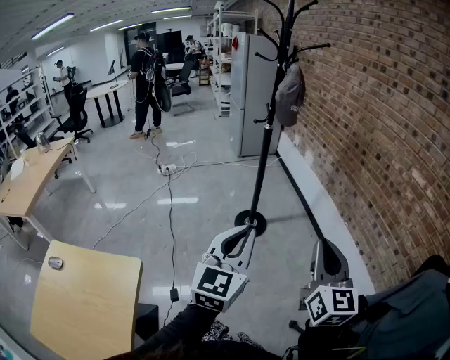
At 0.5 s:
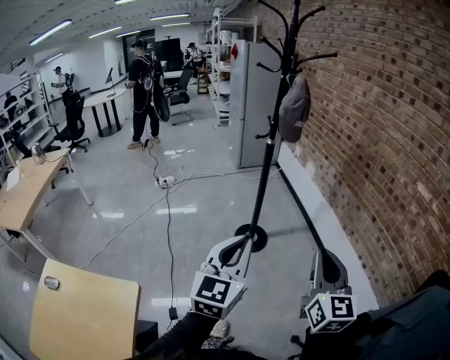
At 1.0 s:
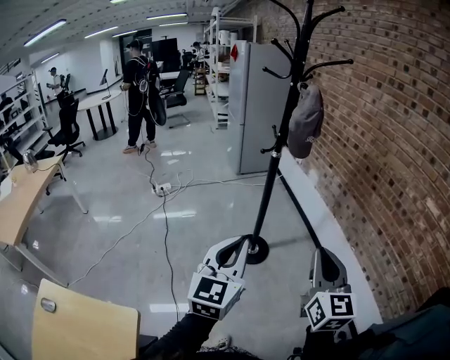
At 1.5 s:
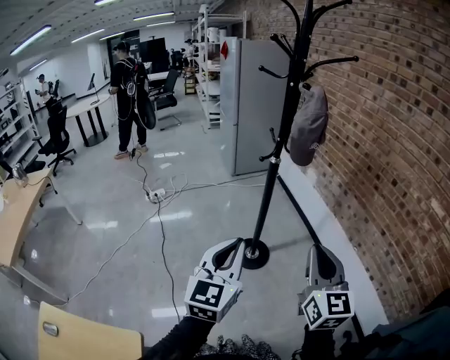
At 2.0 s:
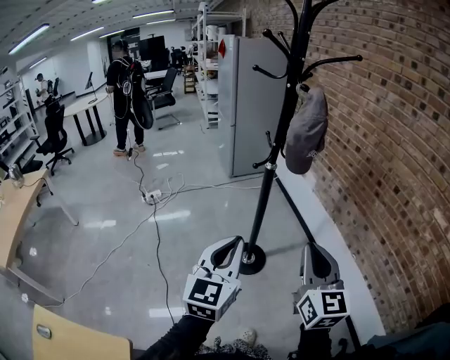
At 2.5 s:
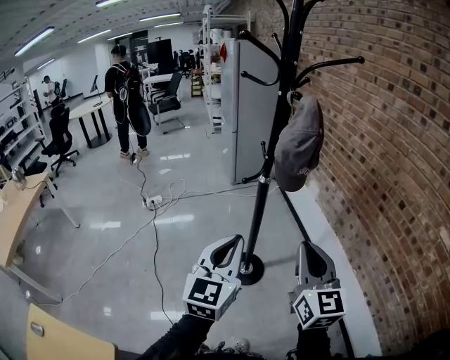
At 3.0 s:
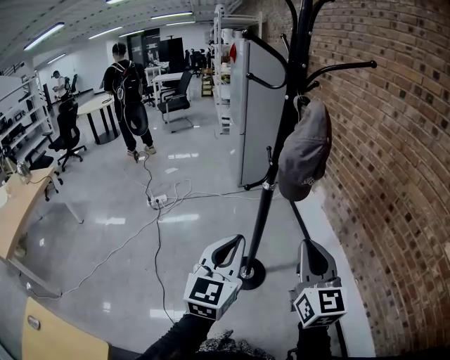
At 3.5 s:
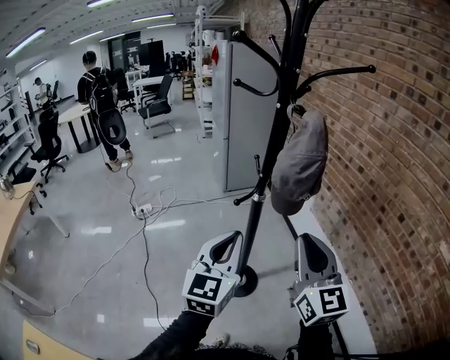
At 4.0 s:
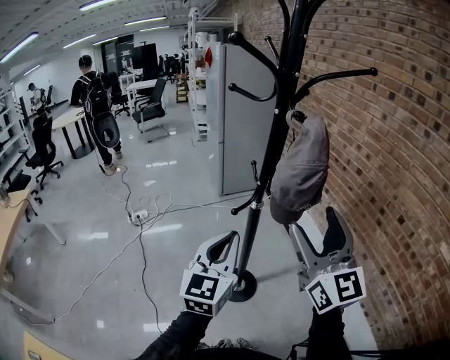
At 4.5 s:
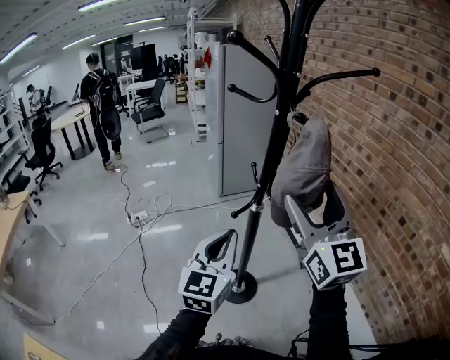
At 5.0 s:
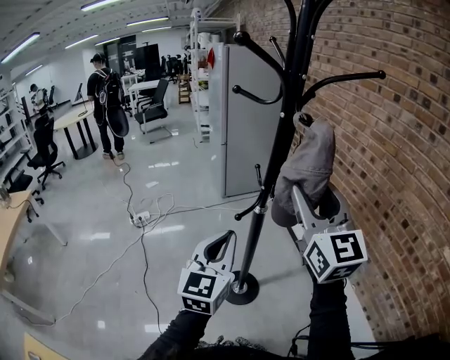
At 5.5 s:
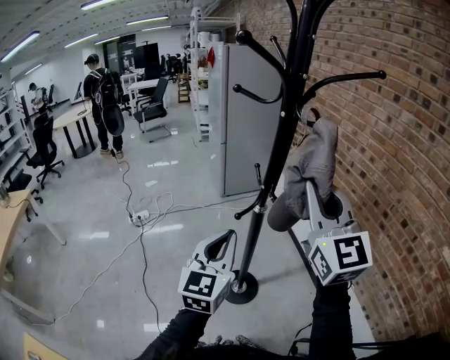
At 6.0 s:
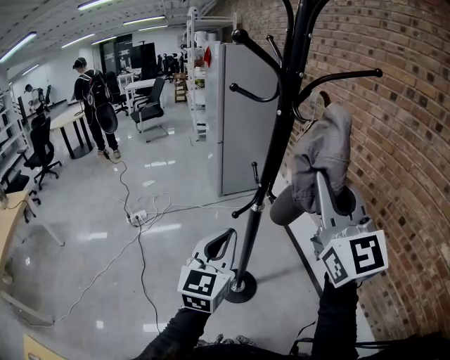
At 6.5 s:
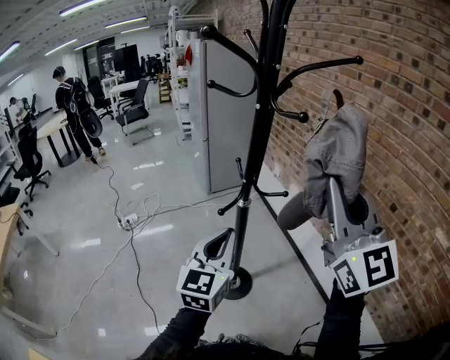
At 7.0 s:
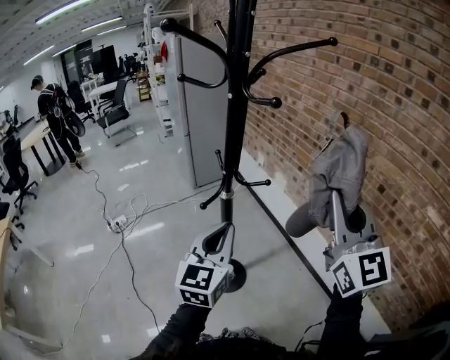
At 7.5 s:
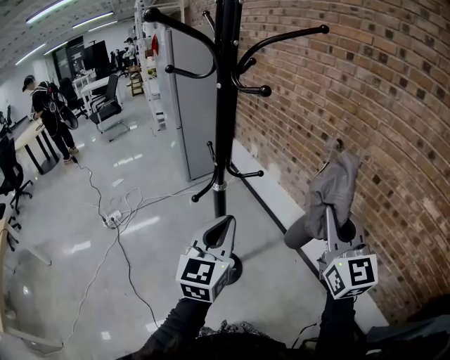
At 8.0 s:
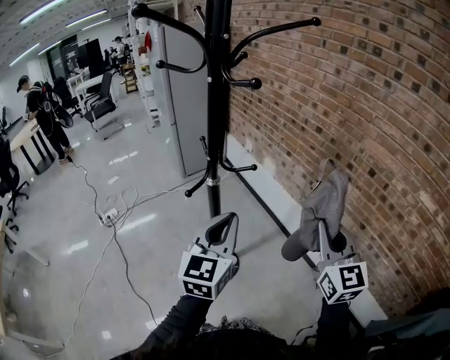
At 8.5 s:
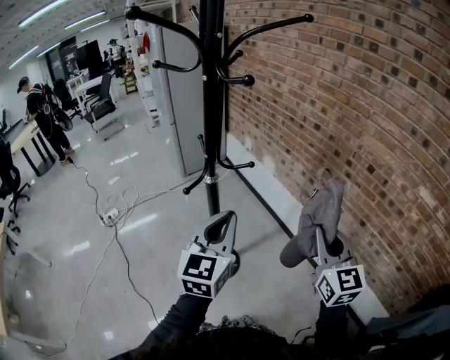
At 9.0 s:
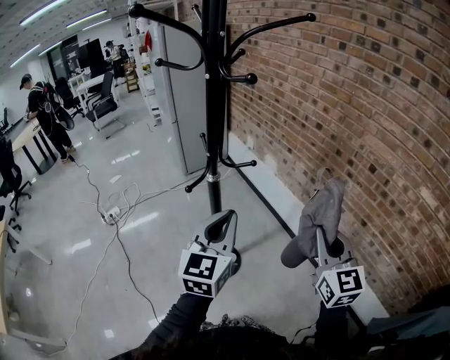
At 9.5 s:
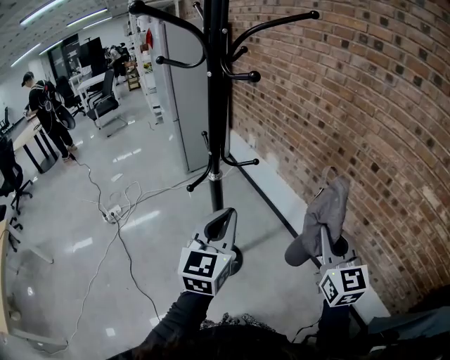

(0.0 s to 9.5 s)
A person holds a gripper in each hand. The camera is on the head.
0.0 s - 2.0 s: The two grippers go some 30 cm forward.
2.0 s - 4.0 s: The left gripper moves forward, some 20 cm; the right gripper travels forward and upward by about 25 cm, and opens its fingers.
4.0 s - 5.5 s: The right gripper goes some 10 cm forward and upward, and closes its fingers.
5.5 s - 7.5 s: The left gripper shifts some 10 cm to the right. Meanwhile the right gripper goes some 20 cm to the right, downward and backward.
7.5 s - 9.5 s: The right gripper moves downward, about 10 cm.

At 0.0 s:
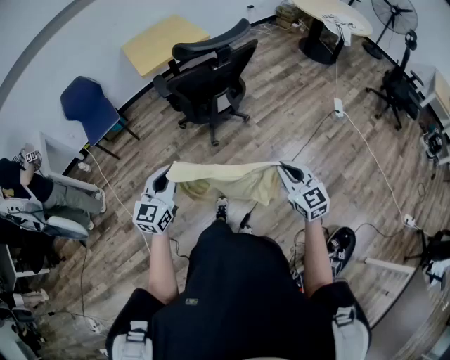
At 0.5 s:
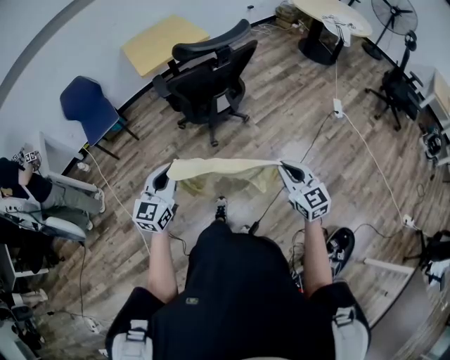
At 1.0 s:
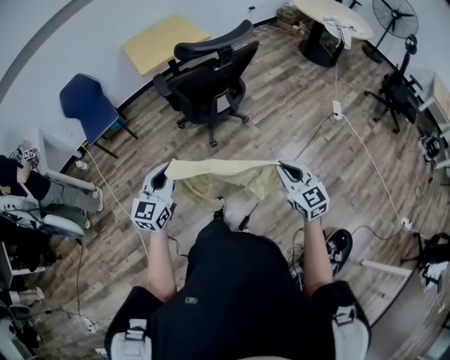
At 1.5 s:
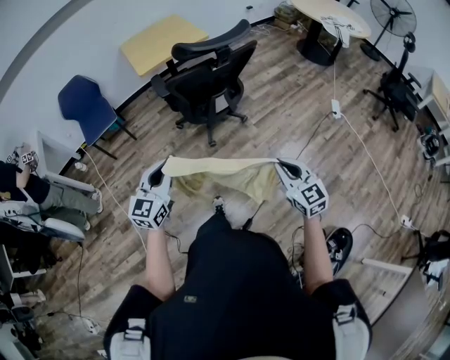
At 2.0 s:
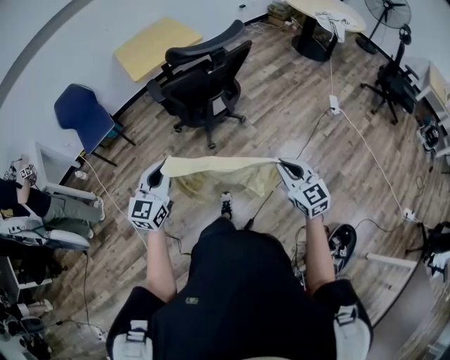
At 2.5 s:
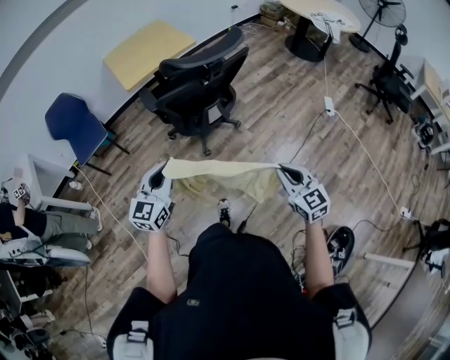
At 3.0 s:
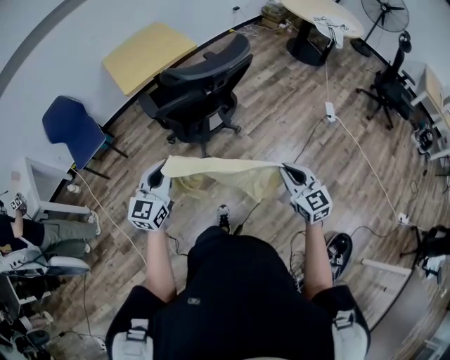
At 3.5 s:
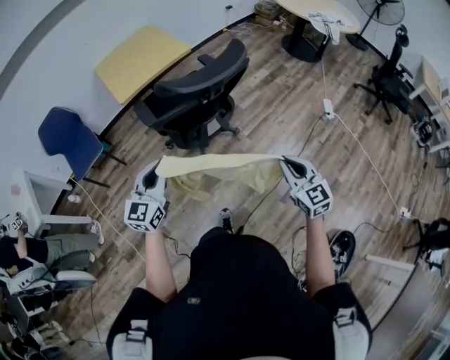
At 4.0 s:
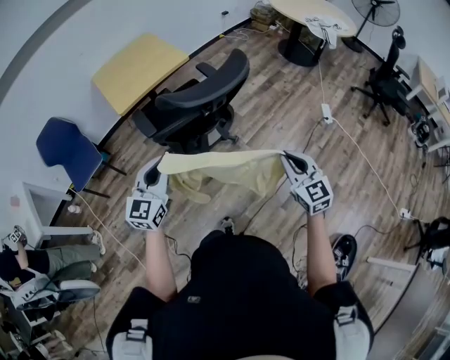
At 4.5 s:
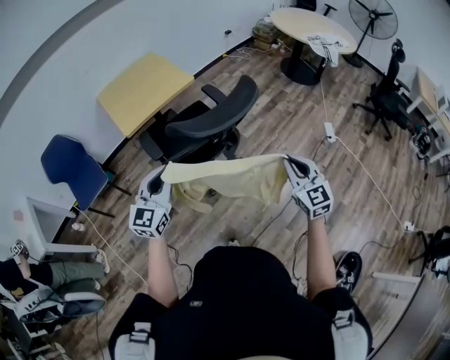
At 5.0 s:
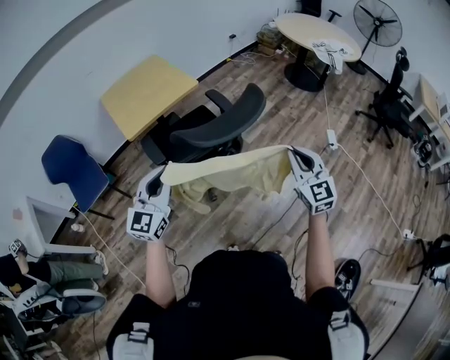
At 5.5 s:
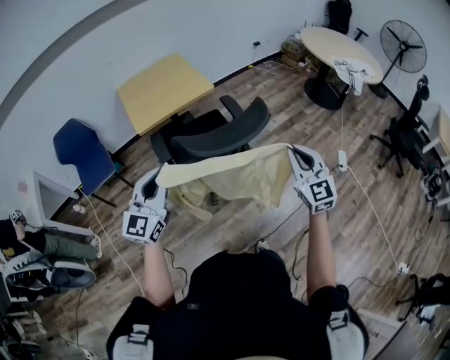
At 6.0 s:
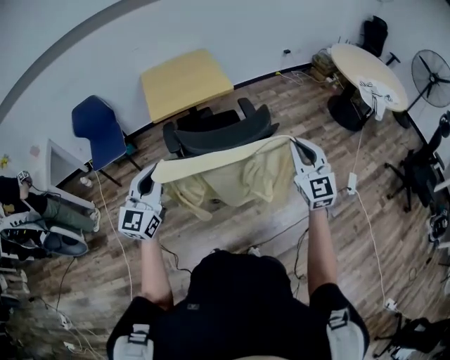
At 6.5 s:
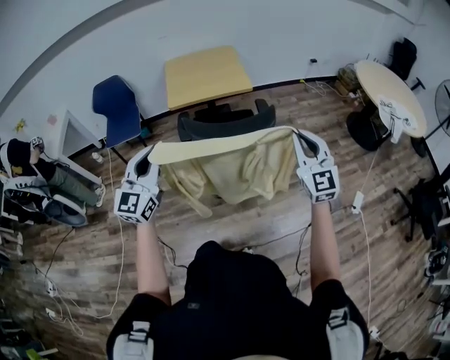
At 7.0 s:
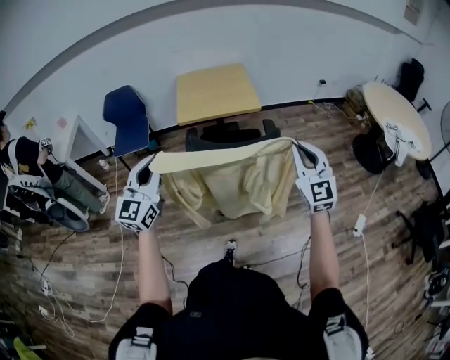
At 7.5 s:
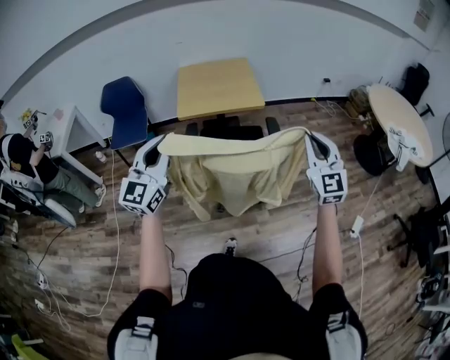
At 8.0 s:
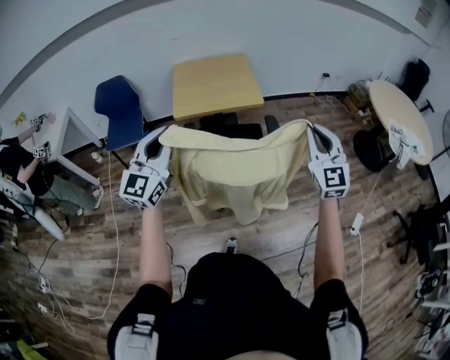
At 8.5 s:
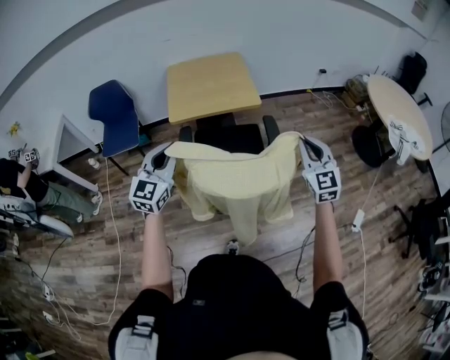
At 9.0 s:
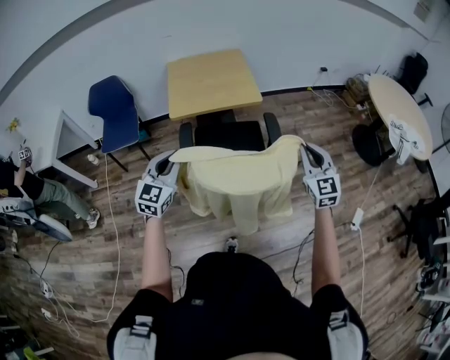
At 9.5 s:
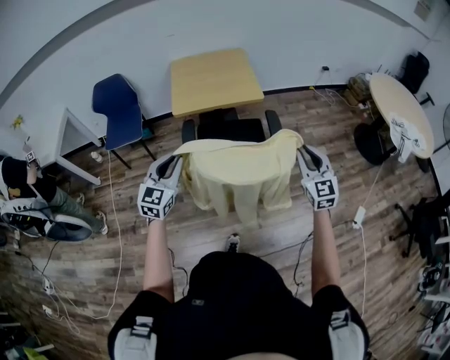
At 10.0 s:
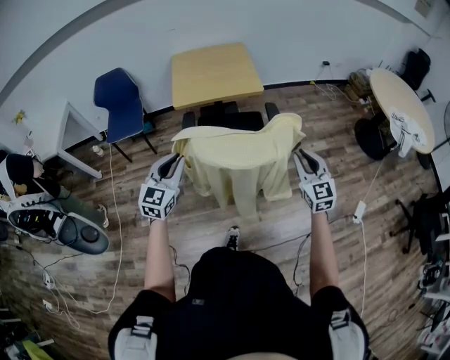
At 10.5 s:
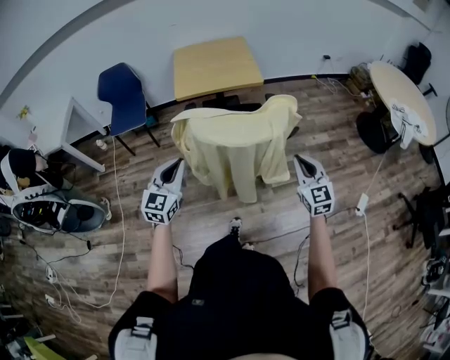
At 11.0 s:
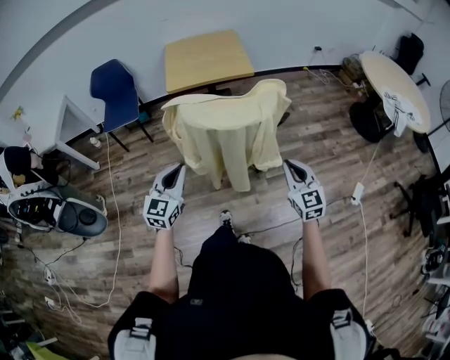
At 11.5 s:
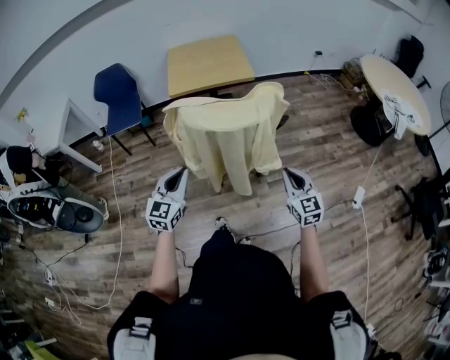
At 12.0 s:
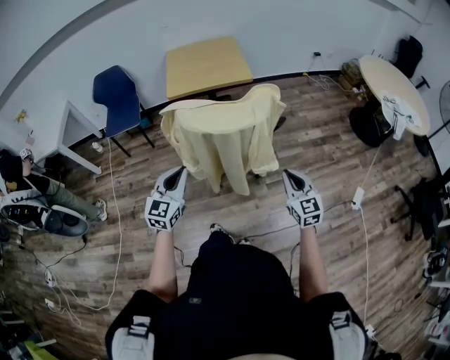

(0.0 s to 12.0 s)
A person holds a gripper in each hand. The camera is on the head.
0.0 s - 2.0 s: The grippers make only small movements.
2.0 s - 4.0 s: Both grippers travel together forward, approximately 25 cm.
4.0 s - 6.0 s: The left gripper is displaced upward by some 10 cm, and rotates approximately 20 degrees; the right gripper moves forward and upward, approximately 25 cm, and swivels some 20 degrees.
6.0 s - 8.0 s: The left gripper shifts some 15 cm forward and upward. Meanwhile the right gripper travels forward by approximately 20 cm.
8.0 s - 10.0 s: The right gripper shifts about 15 cm downward and backward. Meanwhile the left gripper heads downward, covering some 15 cm, and changes its angle by some 20 degrees.
10.0 s - 12.0 s: The left gripper is displaced backward and to the right by approximately 15 cm. The right gripper is displaced backward and downward by roughly 20 cm.

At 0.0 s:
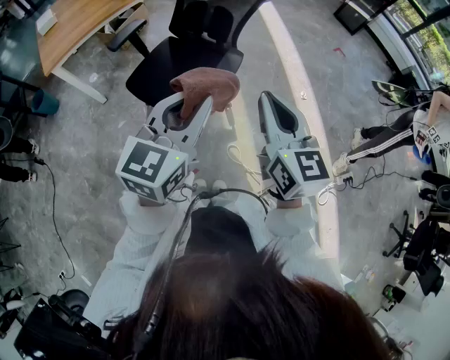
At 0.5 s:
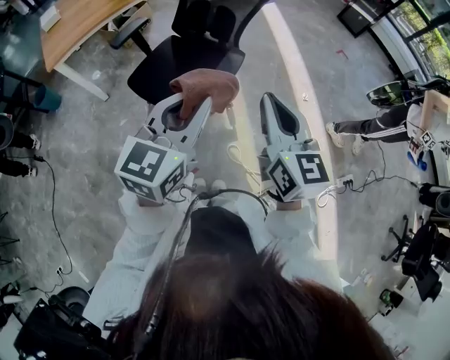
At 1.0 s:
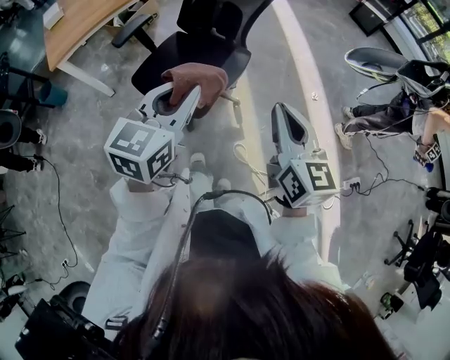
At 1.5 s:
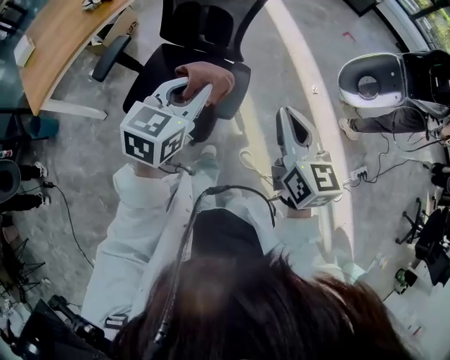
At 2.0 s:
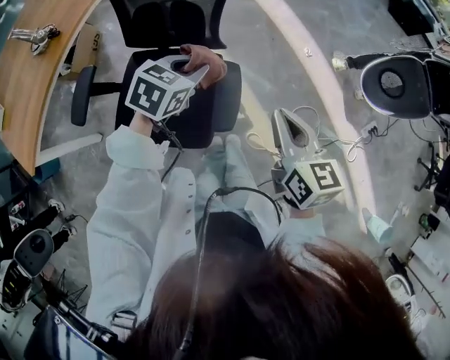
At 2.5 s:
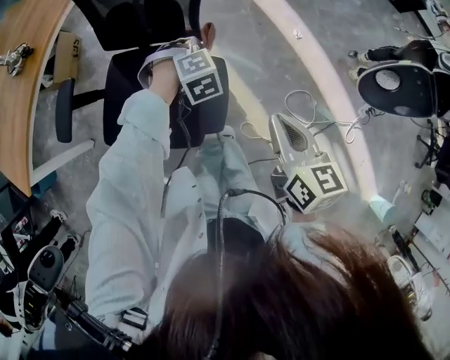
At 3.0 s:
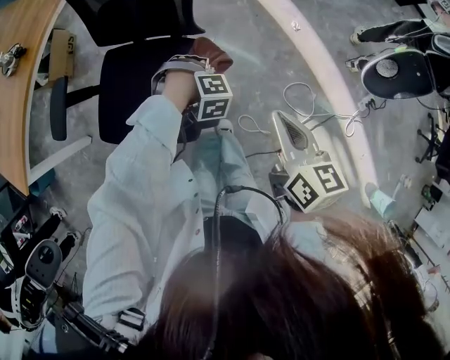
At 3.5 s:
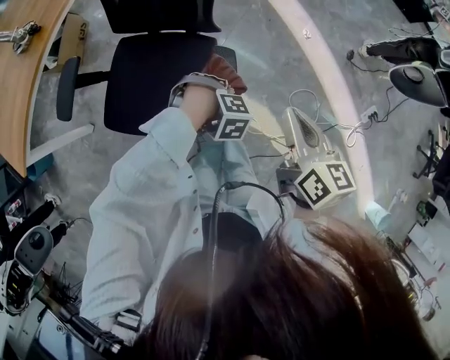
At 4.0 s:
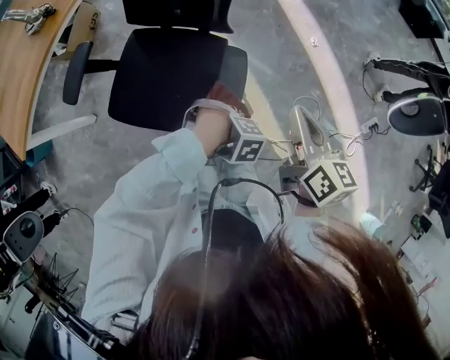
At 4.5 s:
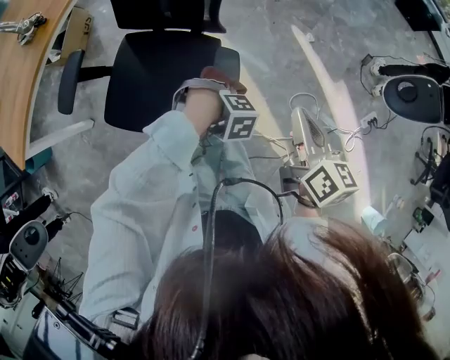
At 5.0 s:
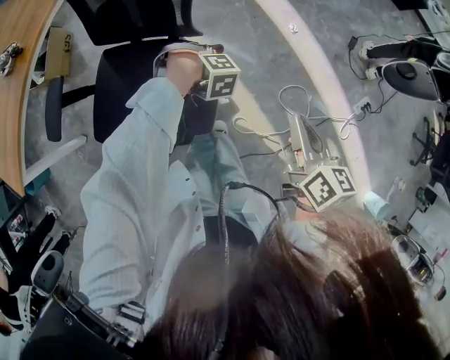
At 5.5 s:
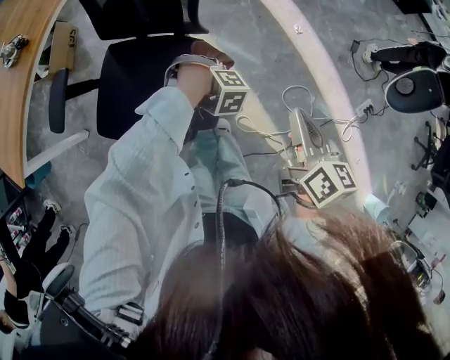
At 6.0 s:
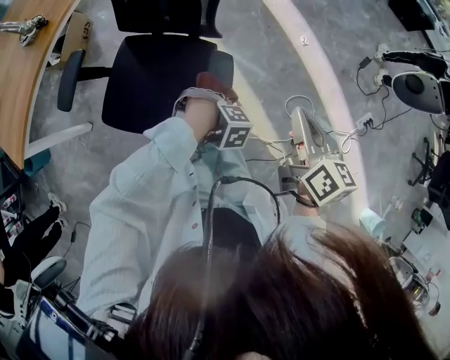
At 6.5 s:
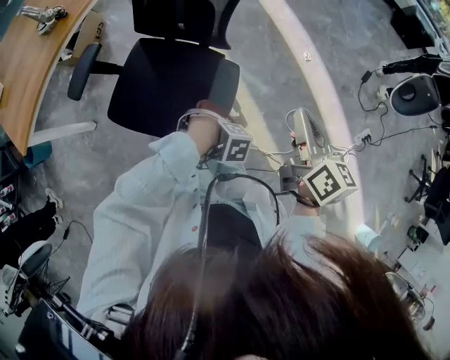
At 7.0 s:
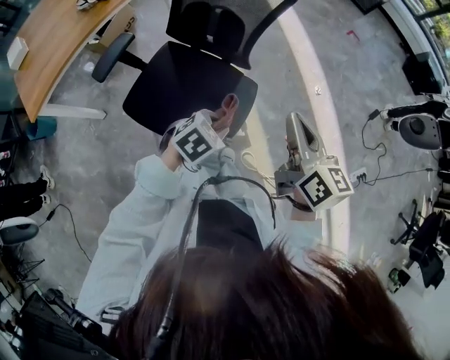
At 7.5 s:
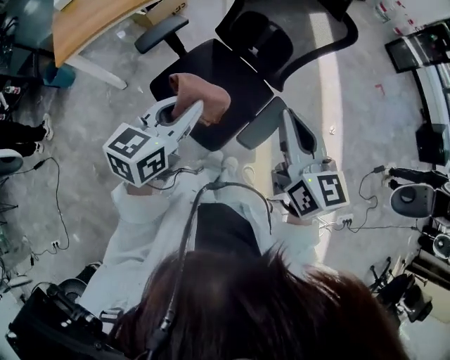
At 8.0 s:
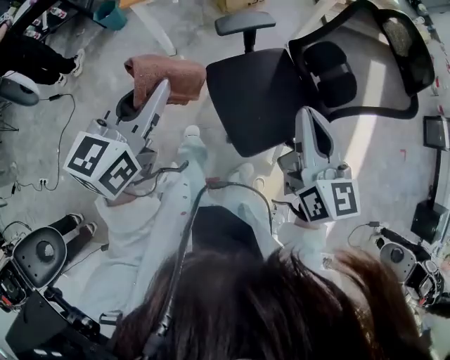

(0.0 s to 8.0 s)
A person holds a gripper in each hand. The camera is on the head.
0.0 s - 2.0 s: The left gripper changes place by roughly 50 cm, and points its fingers roughly 40 degrees further downward. The right gripper ends up about 30 cm from where it was, and changes its angle by about 30 degrees.
2.0 s - 4.0 s: The left gripper ends up some 25 cm from where it was, and points its fingers some 30 degrees further downward.
6.0 s - 8.0 s: The left gripper ends up about 60 cm from where it was, and points its fingers approximately 60 degrees further upward, while the right gripper shifts by some 40 cm, and swivels approximately 60 degrees.
